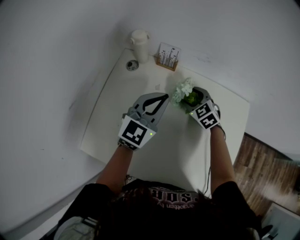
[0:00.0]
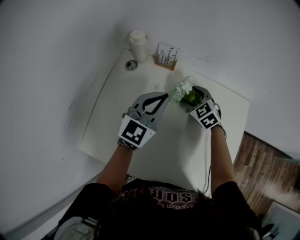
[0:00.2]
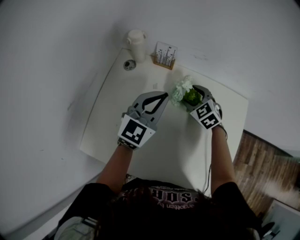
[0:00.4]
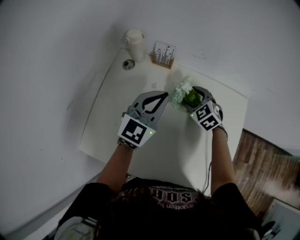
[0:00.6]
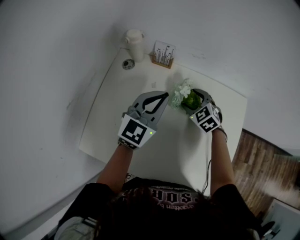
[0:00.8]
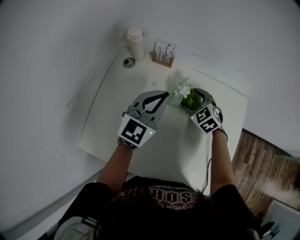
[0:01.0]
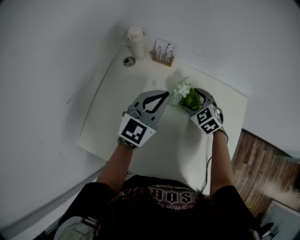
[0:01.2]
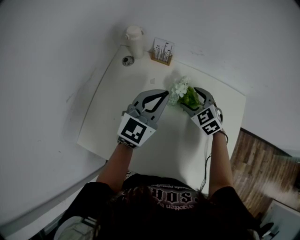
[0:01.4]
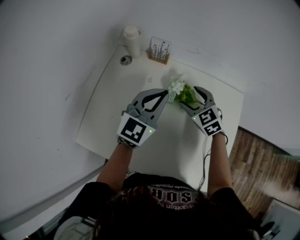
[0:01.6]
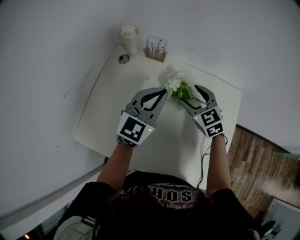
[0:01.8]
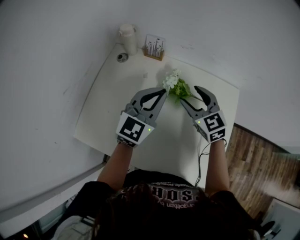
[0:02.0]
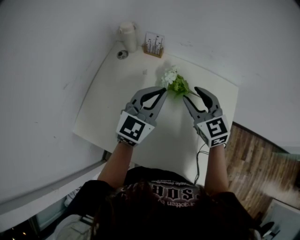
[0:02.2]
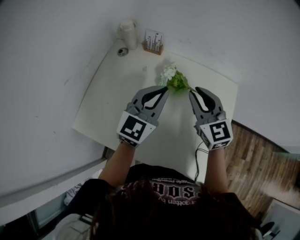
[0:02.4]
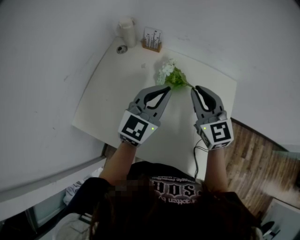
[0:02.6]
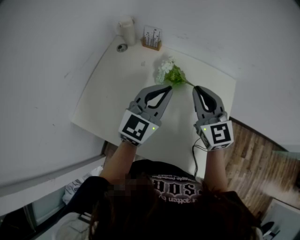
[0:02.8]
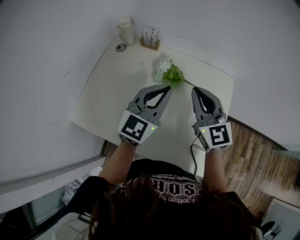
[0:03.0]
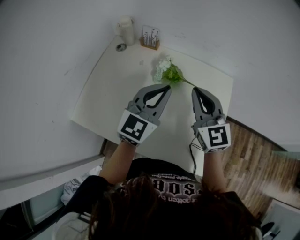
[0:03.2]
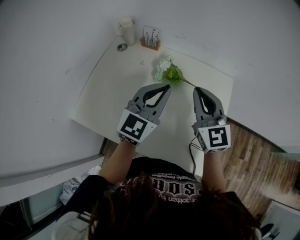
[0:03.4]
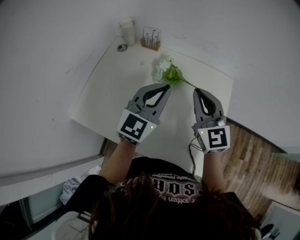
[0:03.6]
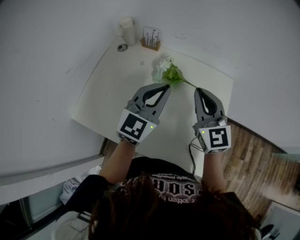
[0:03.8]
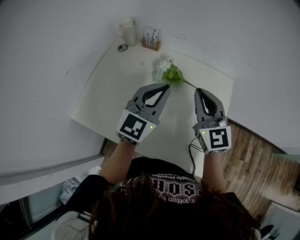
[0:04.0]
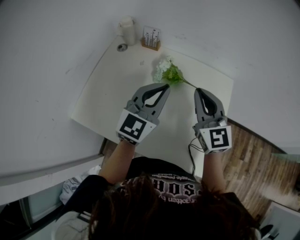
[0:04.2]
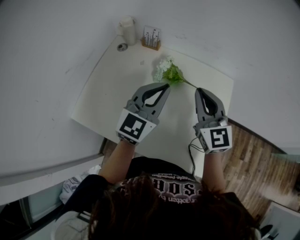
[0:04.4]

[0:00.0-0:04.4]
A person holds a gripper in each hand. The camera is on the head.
0:00.0 to 0:01.4: The right gripper changes place by approximately 5 cm.
0:01.4 to 0:03.0: The left gripper moves backward and to the right, about 15 cm, while the right gripper travels upward, backward and to the right by about 25 cm, tips its fingers upward by roughly 30 degrees, and closes its fingers.
0:03.0 to 0:04.4: There are only small adjustments of the grippers.

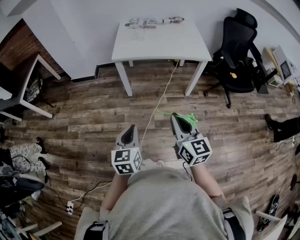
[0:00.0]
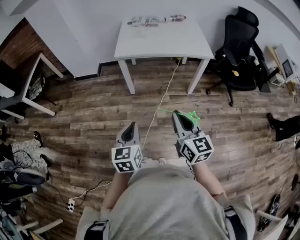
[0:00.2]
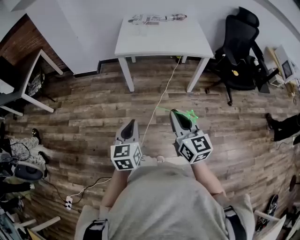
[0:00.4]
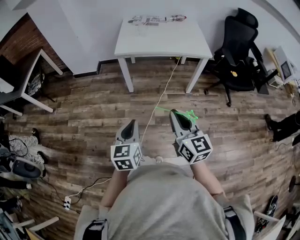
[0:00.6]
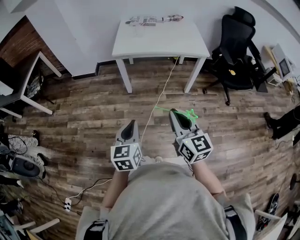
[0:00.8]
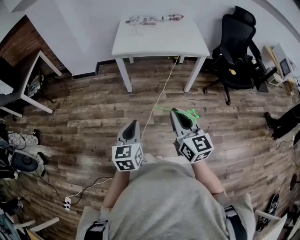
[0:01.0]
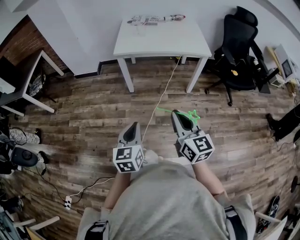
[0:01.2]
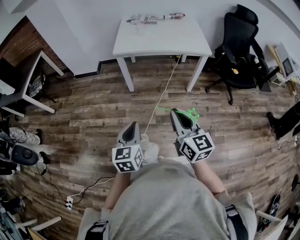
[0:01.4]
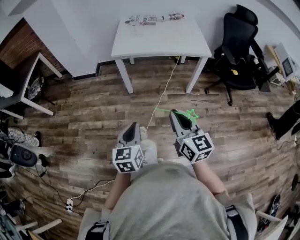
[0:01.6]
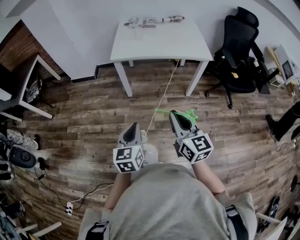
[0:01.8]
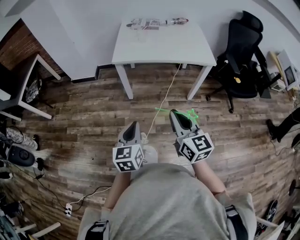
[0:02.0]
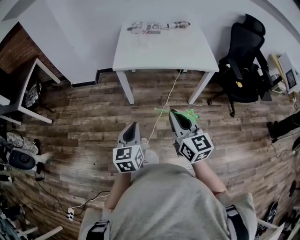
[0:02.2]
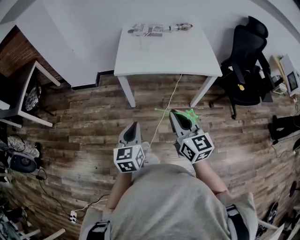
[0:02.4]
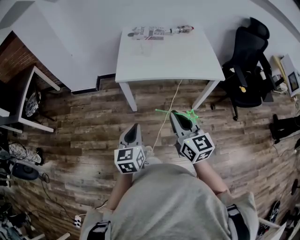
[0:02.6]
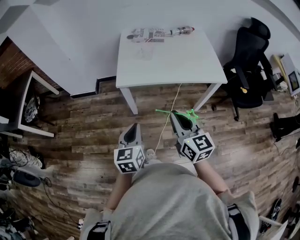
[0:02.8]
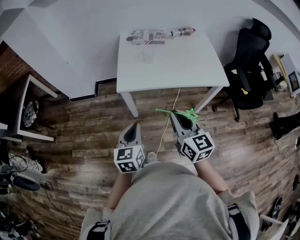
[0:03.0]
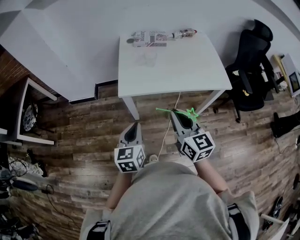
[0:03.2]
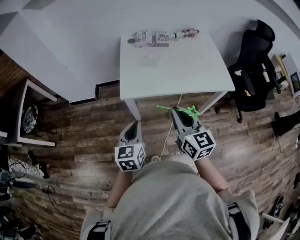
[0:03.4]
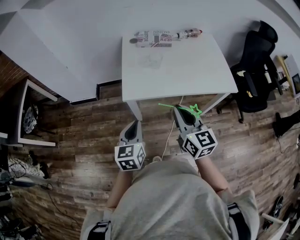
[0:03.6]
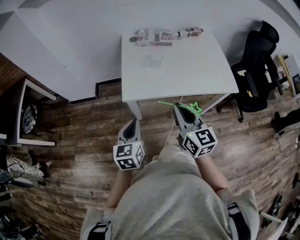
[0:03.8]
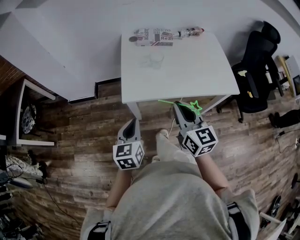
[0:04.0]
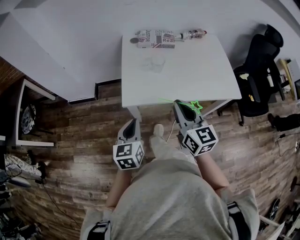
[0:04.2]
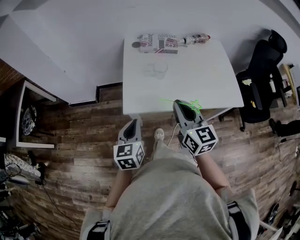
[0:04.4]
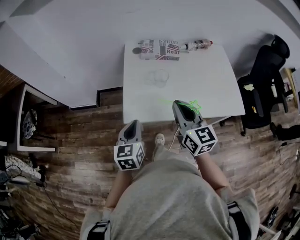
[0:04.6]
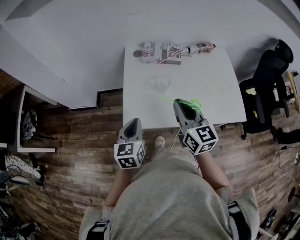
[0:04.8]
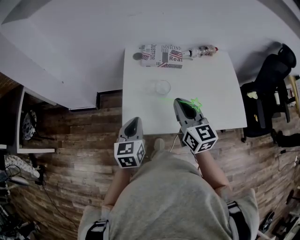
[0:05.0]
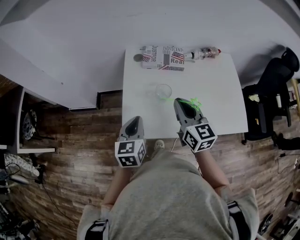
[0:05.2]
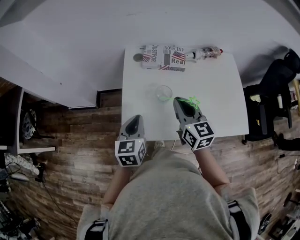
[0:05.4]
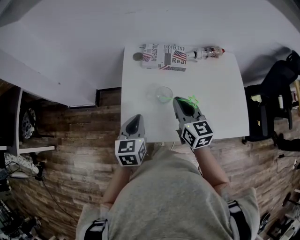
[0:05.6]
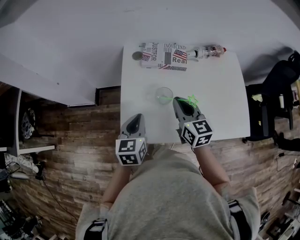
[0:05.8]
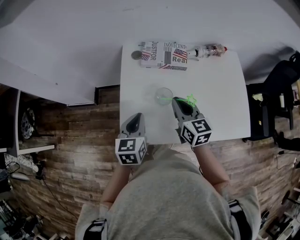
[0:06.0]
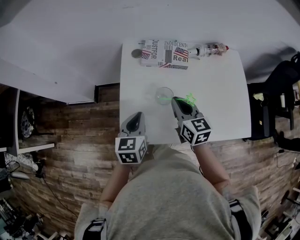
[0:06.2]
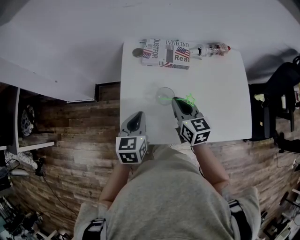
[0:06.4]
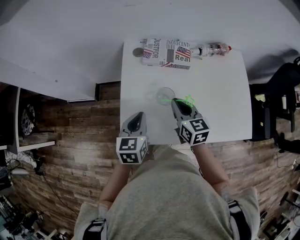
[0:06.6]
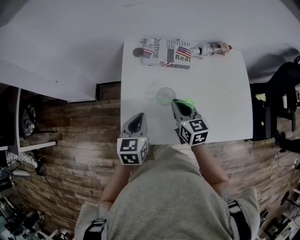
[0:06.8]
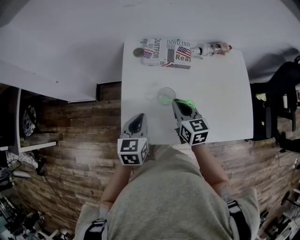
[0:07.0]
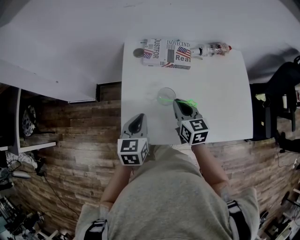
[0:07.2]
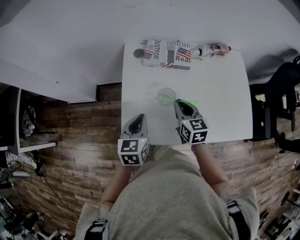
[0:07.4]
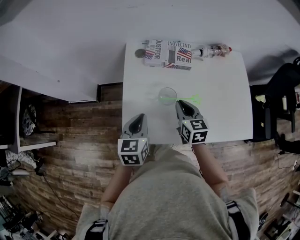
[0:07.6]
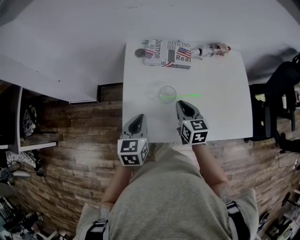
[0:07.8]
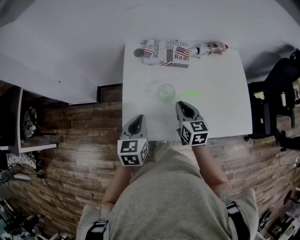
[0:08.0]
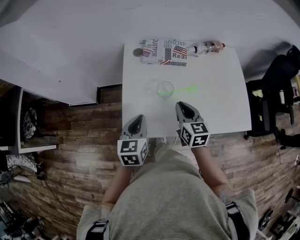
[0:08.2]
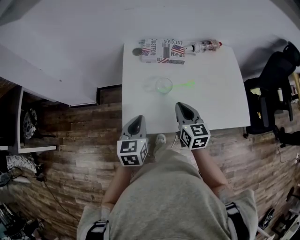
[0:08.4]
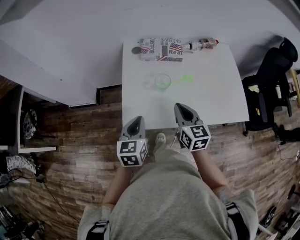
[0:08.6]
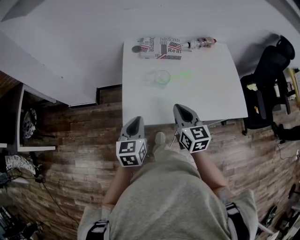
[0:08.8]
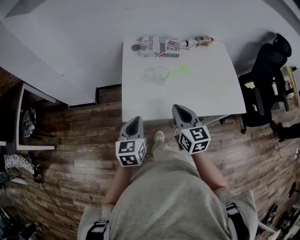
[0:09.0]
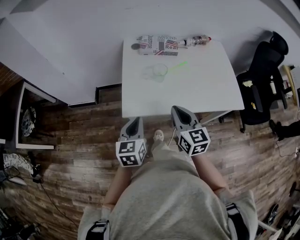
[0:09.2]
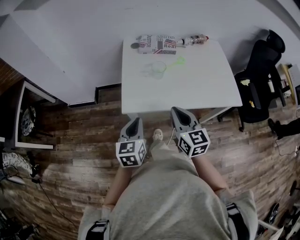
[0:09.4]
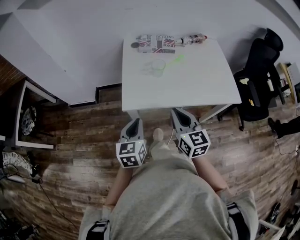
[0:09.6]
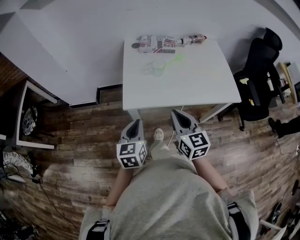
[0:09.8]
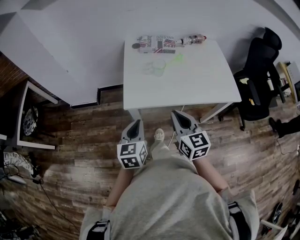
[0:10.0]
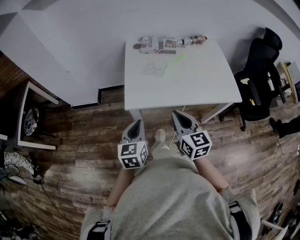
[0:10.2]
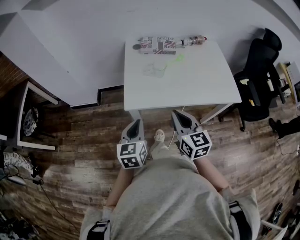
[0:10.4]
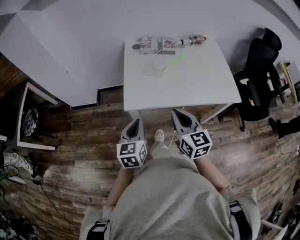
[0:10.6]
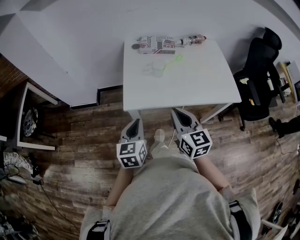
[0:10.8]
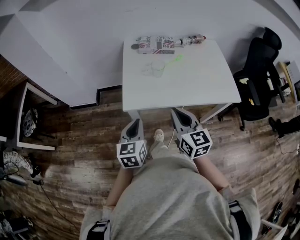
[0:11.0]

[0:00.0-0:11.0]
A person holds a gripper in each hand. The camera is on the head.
0:00.0 to 0:01.6: The grippers stay close to where they were, moving slightly.
0:01.6 to 0:03.2: The two grippers go some 35 cm forward.
0:03.2 to 0:04.8: The two grippers go about 25 cm forward.
0:04.8 to 0:06.2: The right gripper shifts roughly 20 cm forward and downward; the left gripper goes roughly 15 cm forward.
0:06.2 to 0:07.8: The right gripper moves some 5 cm.
0:07.8 to 0:09.4: The left gripper goes approximately 20 cm backward; the right gripper travels backward and upward by roughly 25 cm.
0:09.4 to 0:11.0: The grippers move only a little.

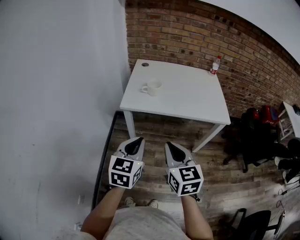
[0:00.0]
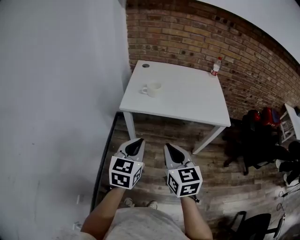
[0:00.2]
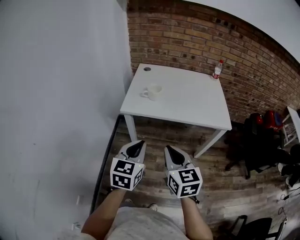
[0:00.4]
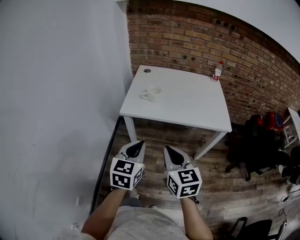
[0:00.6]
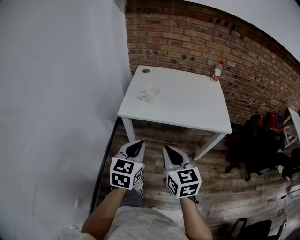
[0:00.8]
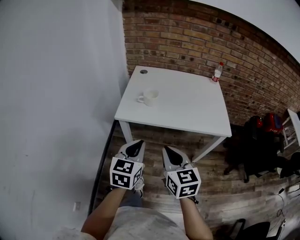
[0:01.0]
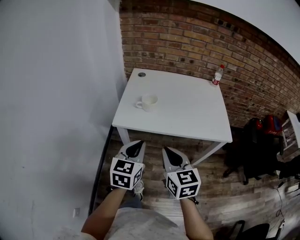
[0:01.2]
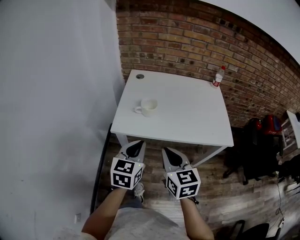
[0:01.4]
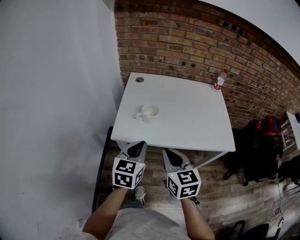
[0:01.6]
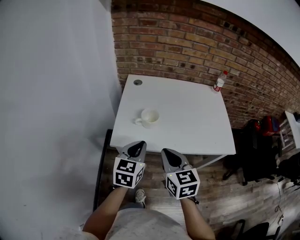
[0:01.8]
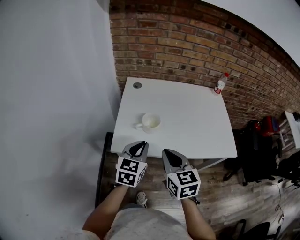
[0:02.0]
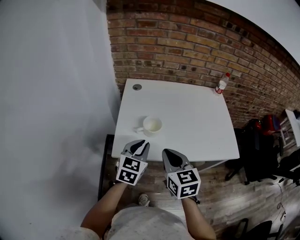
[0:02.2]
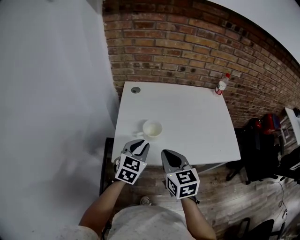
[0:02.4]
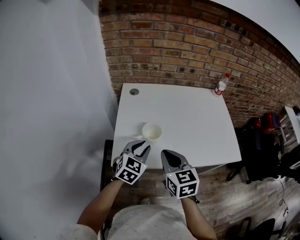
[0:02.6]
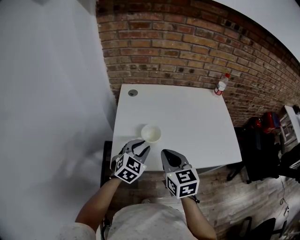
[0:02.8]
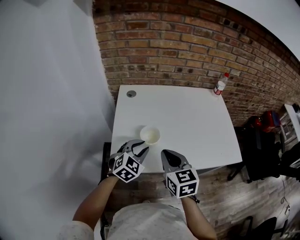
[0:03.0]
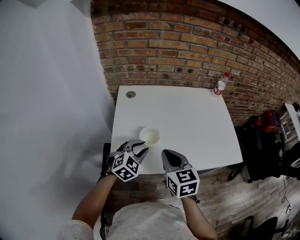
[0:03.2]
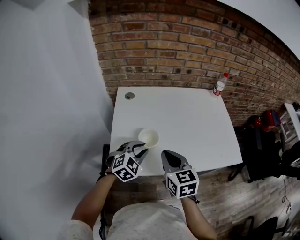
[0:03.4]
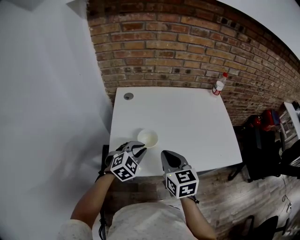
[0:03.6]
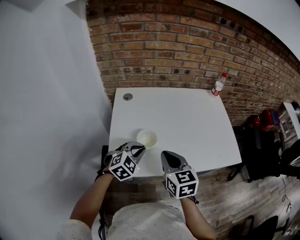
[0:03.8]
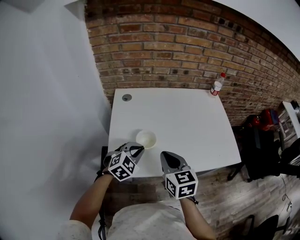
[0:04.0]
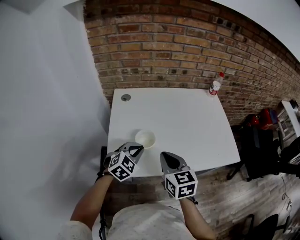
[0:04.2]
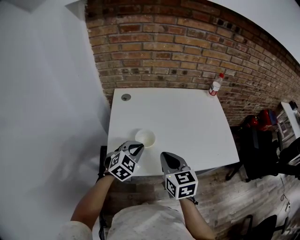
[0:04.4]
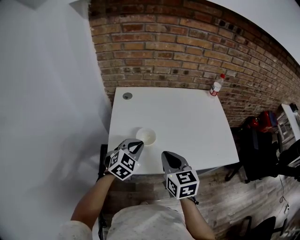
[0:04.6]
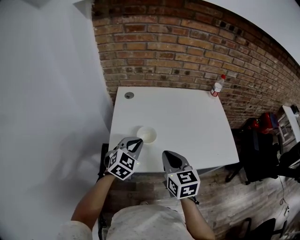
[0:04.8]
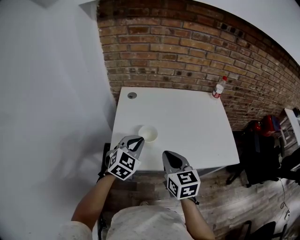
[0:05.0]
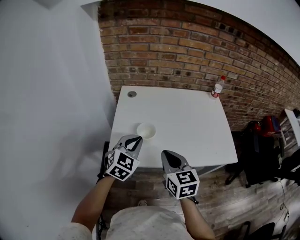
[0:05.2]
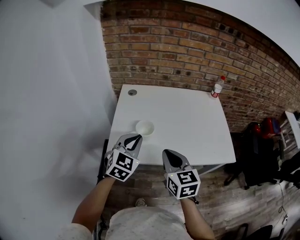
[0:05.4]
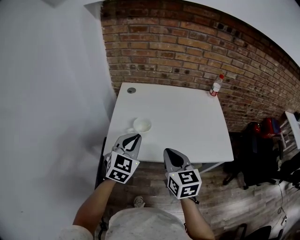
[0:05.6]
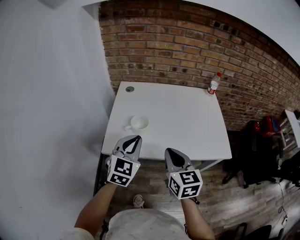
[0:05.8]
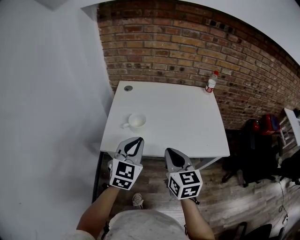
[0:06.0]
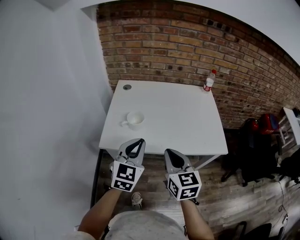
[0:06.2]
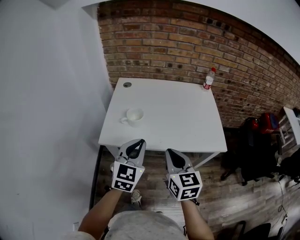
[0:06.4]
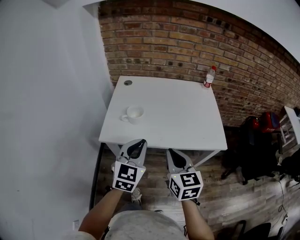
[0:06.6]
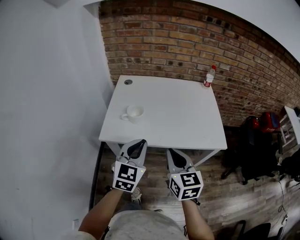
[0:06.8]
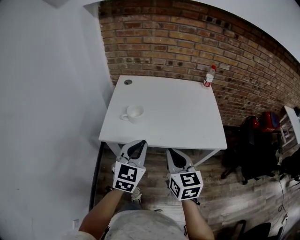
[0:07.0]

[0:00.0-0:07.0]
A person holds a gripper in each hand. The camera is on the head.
0:00.0 to 0:01.4: Both grippers move forward, approximately 20 cm.
0:01.4 to 0:02.8: The two grippers go approximately 25 cm forward. The left gripper swivels some 30 degrees, and opens.
0:02.8 to 0:04.2: The left gripper closes its fingers.
0:04.2 to 0:05.6: The right gripper shifts approximately 10 cm backward and to the right. Meanwhile the left gripper travels upward and backward by about 15 cm, and swivels about 30 degrees.
0:05.6 to 0:07.0: The grippers both shift backward and to the right by roughly 15 cm.

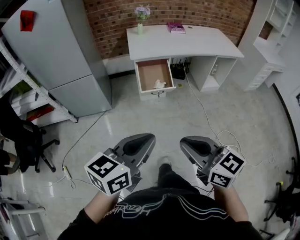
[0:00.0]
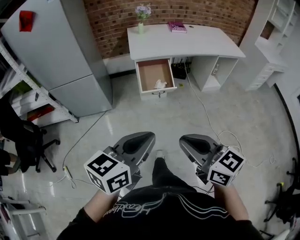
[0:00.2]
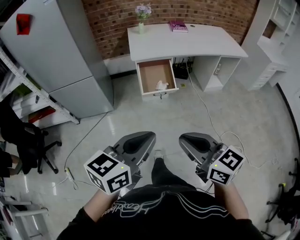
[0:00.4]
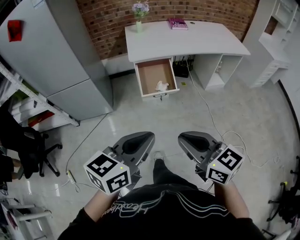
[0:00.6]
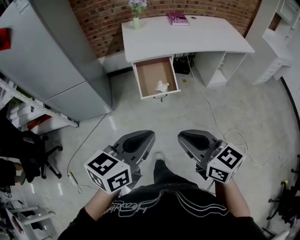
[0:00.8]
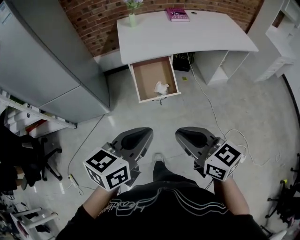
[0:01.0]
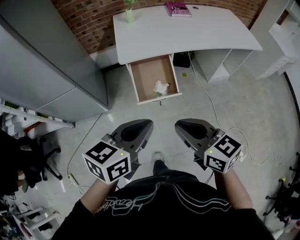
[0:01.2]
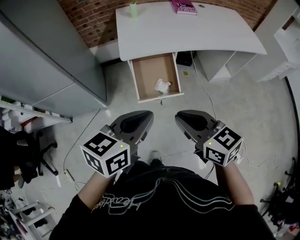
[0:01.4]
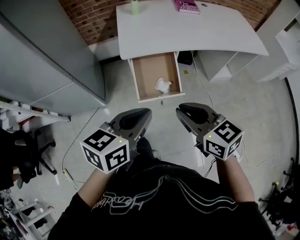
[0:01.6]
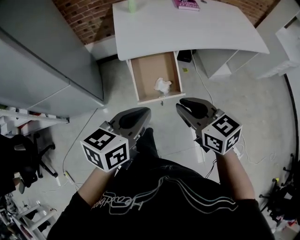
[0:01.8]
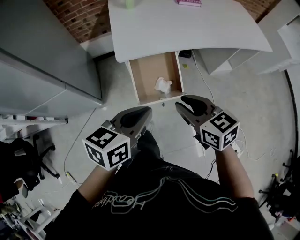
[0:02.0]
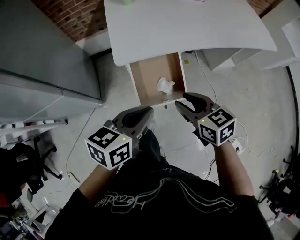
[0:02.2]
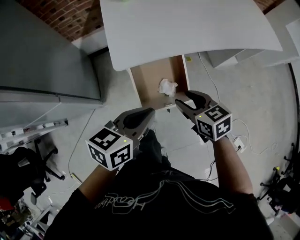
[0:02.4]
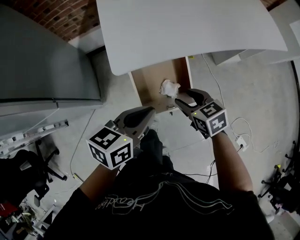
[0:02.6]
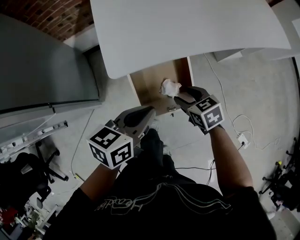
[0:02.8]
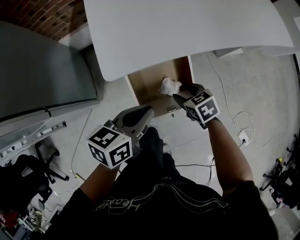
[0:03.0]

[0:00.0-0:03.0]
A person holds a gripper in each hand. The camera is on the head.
0:00.0 to 0:01.6: The two grippers travel together, forward, about 40 cm.
0:01.6 to 0:03.0: The left gripper goes roughly 35 cm forward and downward; the right gripper shifts some 40 cm downward and forward, angles its fingers downward, by roughly 30 degrees, and opens its fingers.
